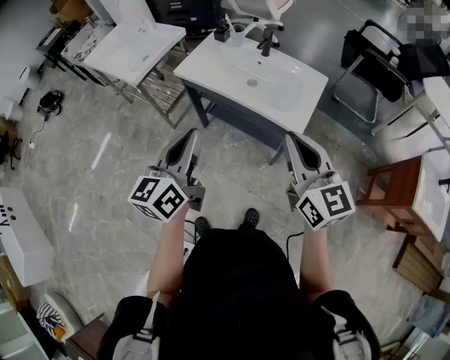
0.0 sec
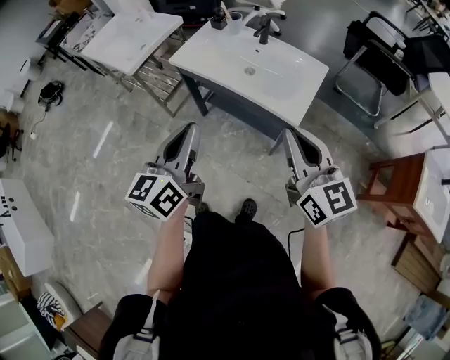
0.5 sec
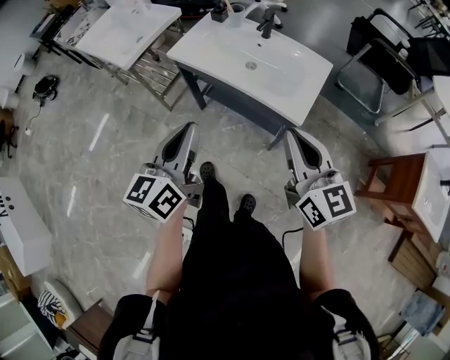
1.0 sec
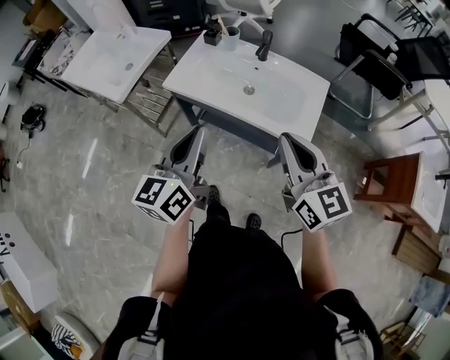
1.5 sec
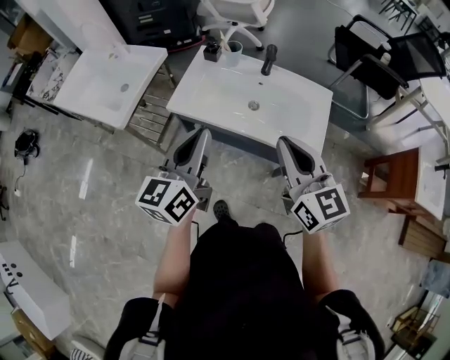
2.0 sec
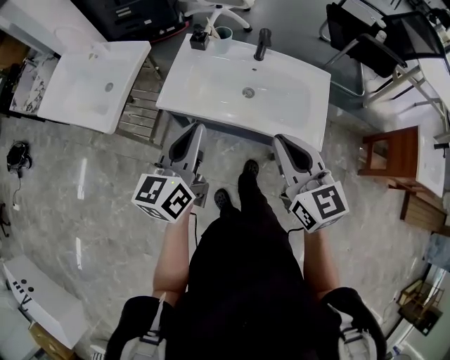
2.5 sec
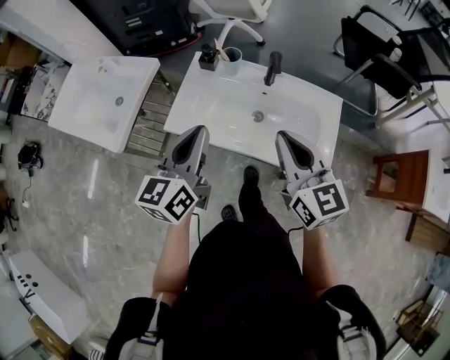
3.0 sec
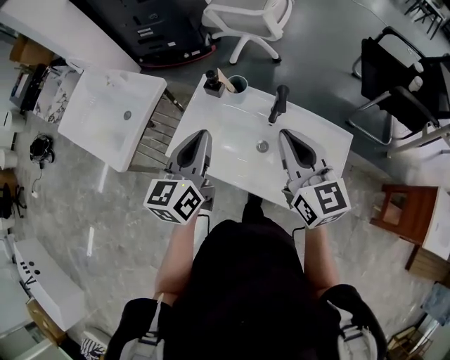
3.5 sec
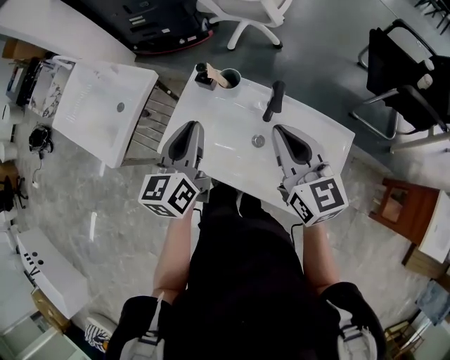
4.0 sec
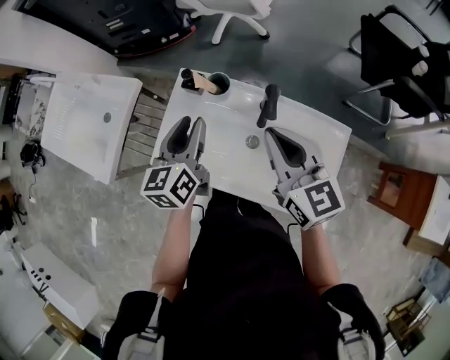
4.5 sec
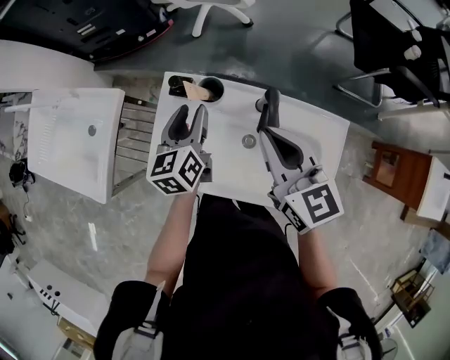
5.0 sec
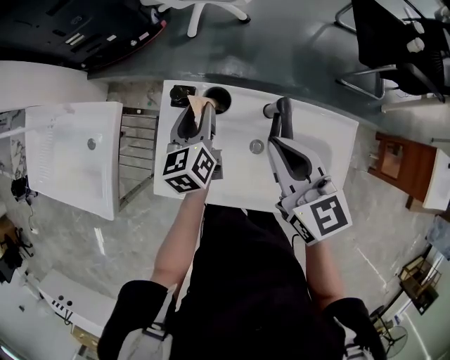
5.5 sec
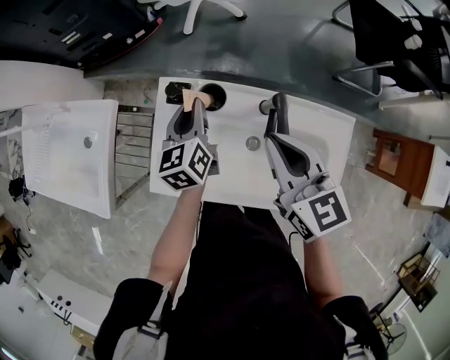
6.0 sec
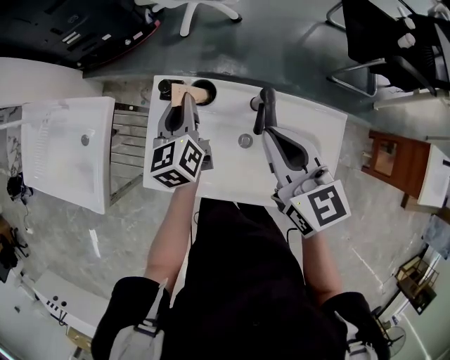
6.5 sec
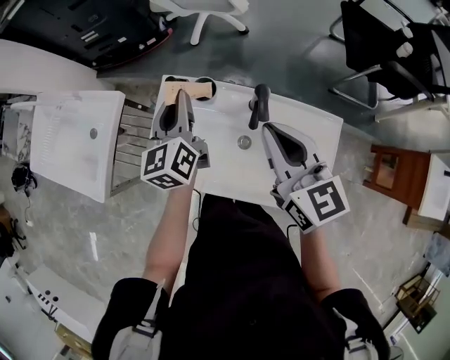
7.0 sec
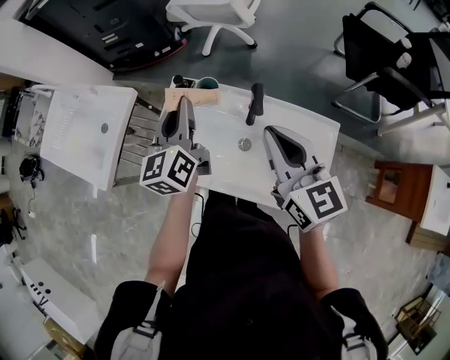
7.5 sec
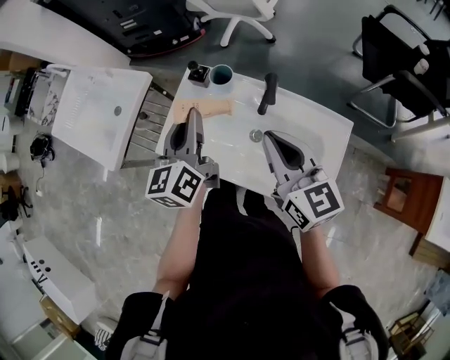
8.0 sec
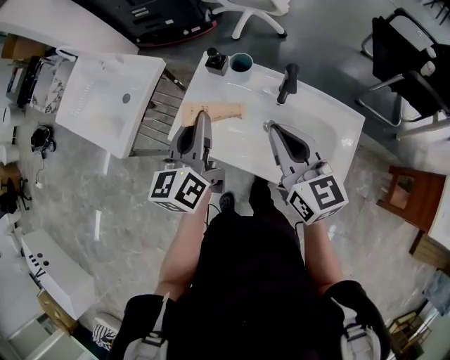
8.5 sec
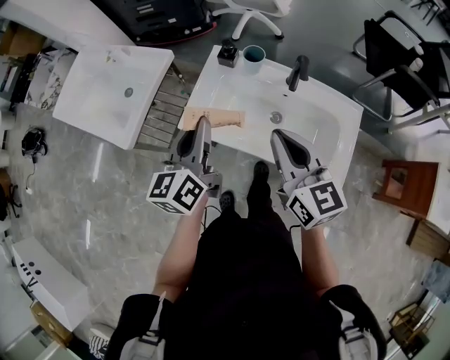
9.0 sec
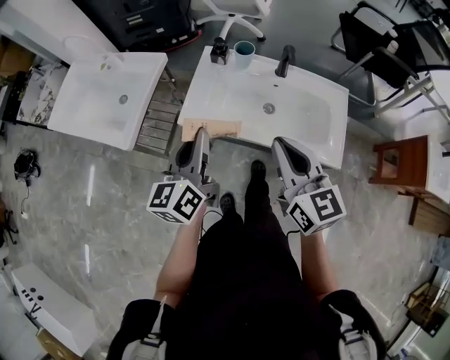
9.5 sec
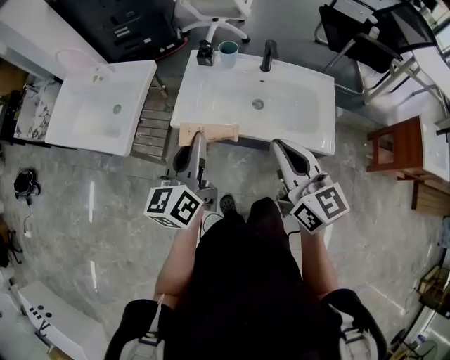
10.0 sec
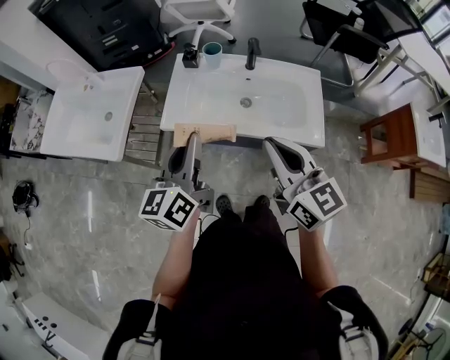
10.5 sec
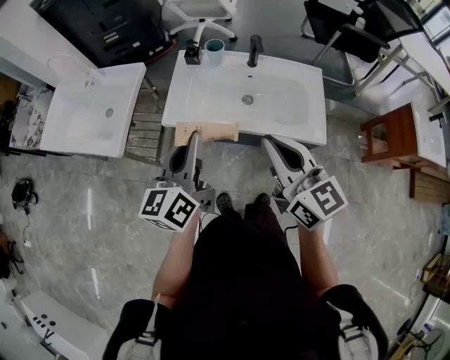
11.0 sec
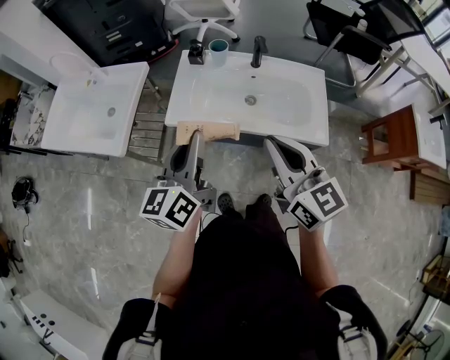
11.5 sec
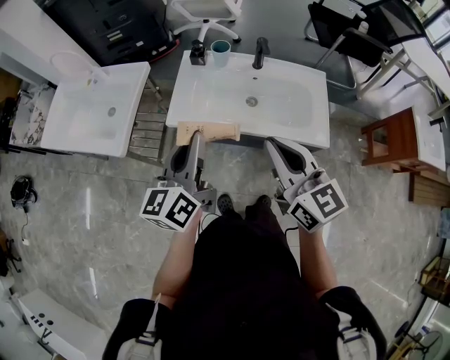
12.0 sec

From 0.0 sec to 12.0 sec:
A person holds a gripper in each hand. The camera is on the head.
From 0.0 sec to 2.0 sec: The left gripper goes approximately 20 cm forward. Meanwhile the right gripper shifts about 20 cm forward and to the left.
From 2.0 sec to 4.0 sec: Both grippers move forward, approximately 30 cm.
From 4.0 sec to 6.0 sec: The right gripper is displaced forward by approximately 10 cm, while the left gripper goes approximately 25 cm forward and downward, and opens and closes again.
From 6.0 sec to 8.0 sec: The left gripper shifts some 20 cm backward and upward. The right gripper heads backward, covering approximately 10 cm.
From 8.0 sec to 10.0 sec: Both grippers move backward and to the left, approximately 25 cm.
From 10.0 sec to 12.0 sec: The grippers stay close to where they were, moving slightly.

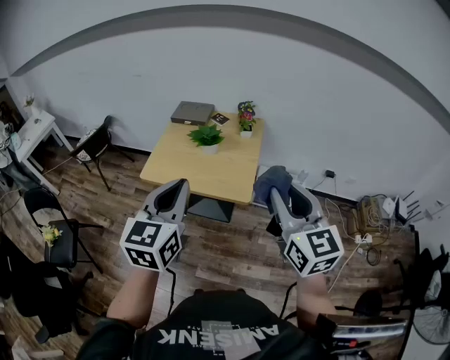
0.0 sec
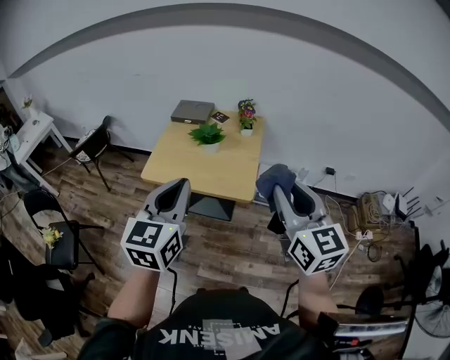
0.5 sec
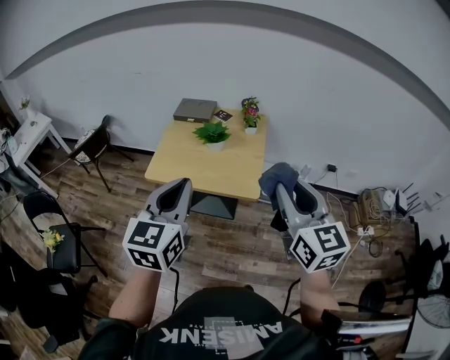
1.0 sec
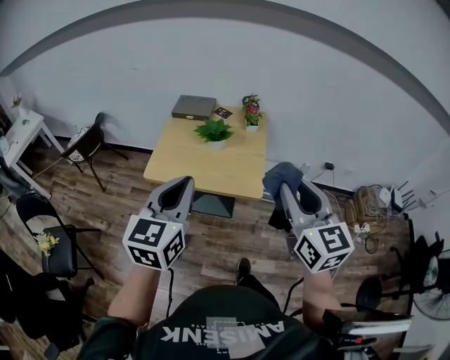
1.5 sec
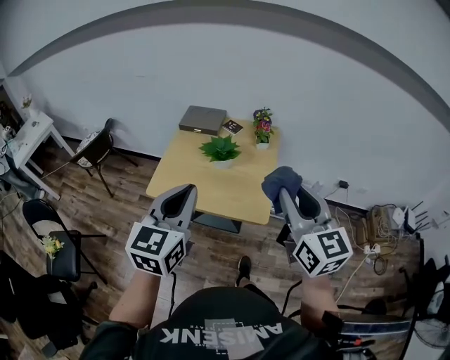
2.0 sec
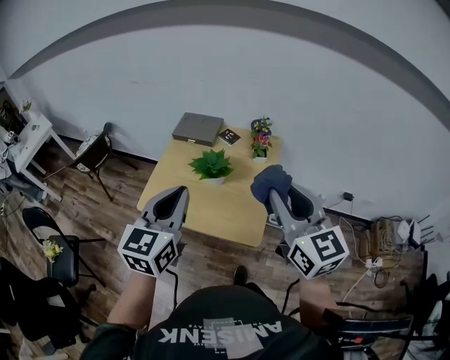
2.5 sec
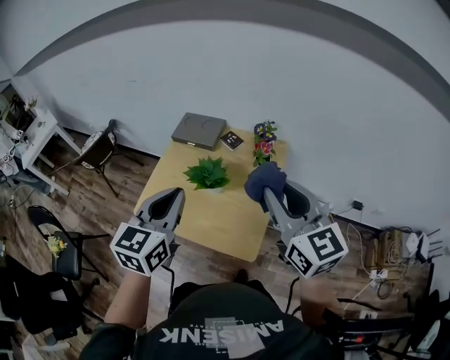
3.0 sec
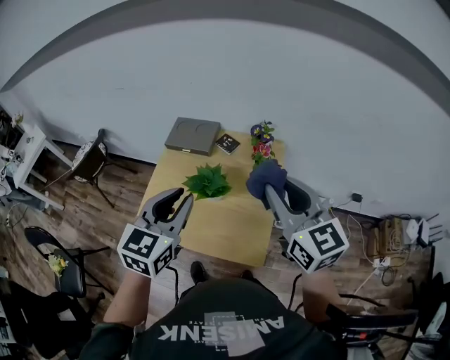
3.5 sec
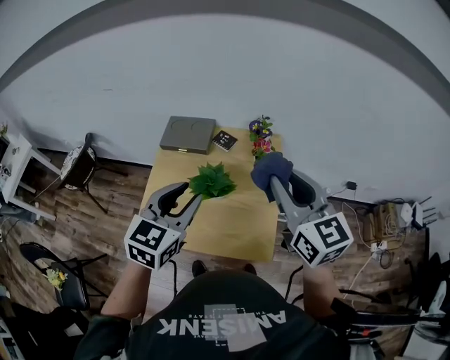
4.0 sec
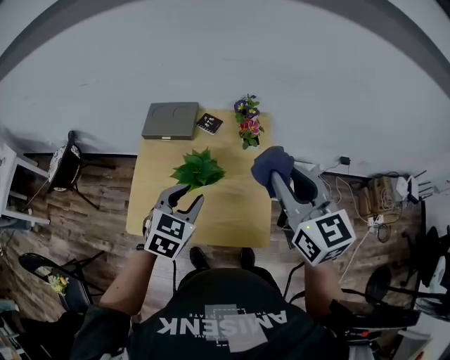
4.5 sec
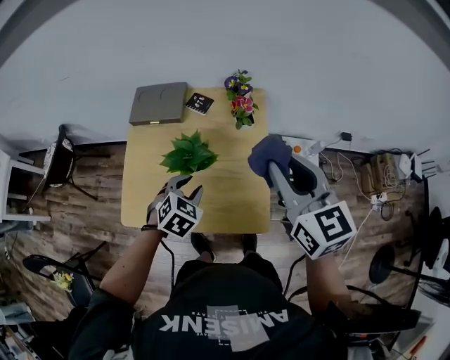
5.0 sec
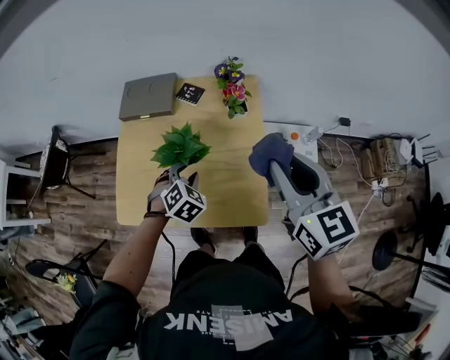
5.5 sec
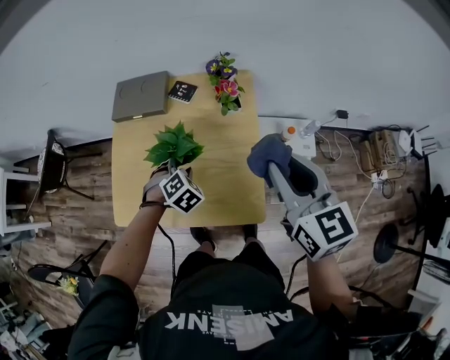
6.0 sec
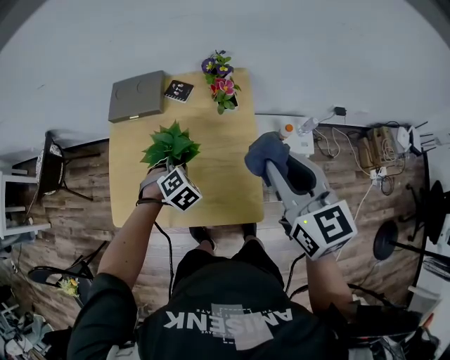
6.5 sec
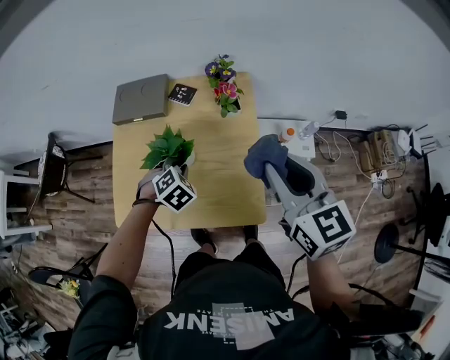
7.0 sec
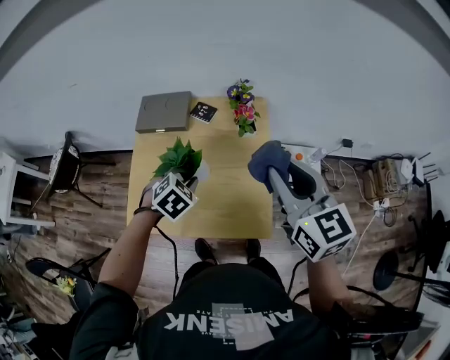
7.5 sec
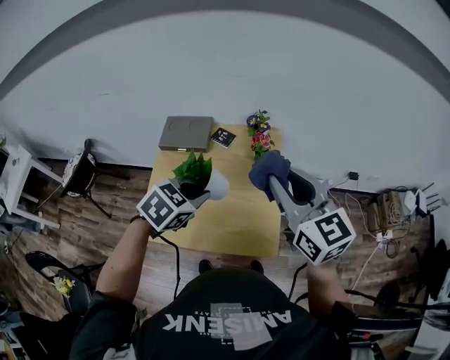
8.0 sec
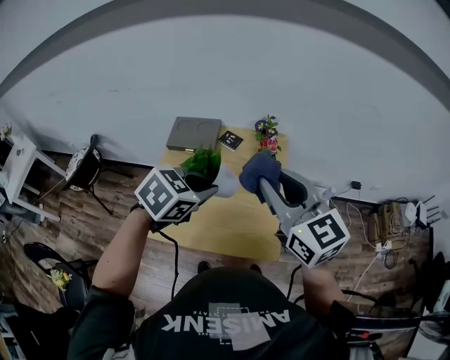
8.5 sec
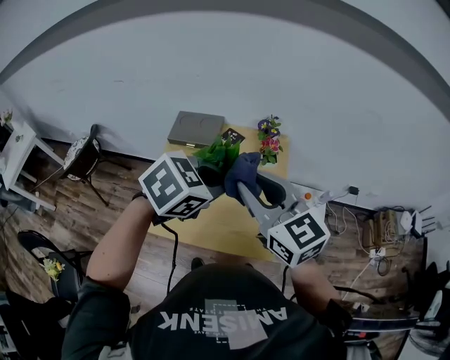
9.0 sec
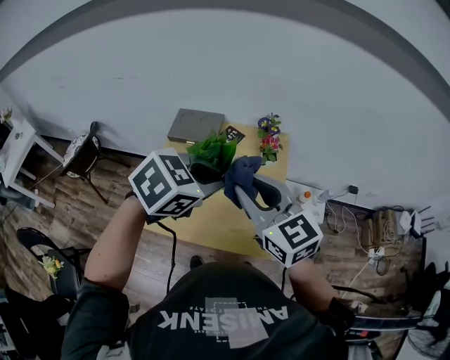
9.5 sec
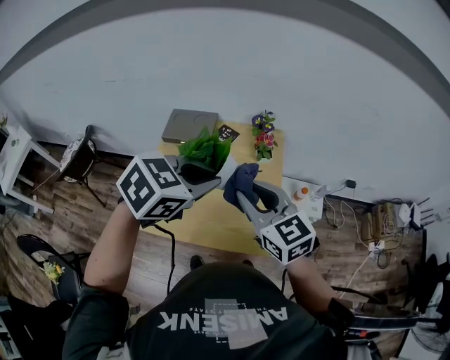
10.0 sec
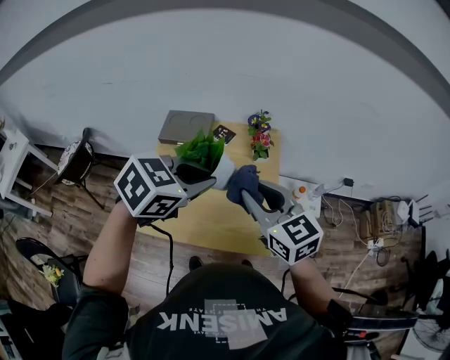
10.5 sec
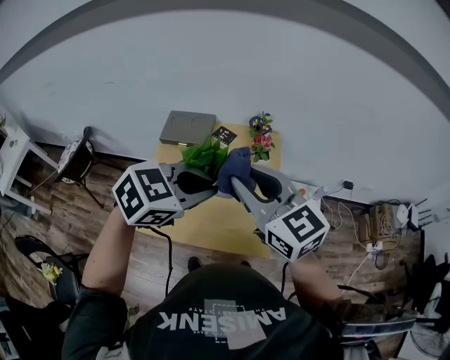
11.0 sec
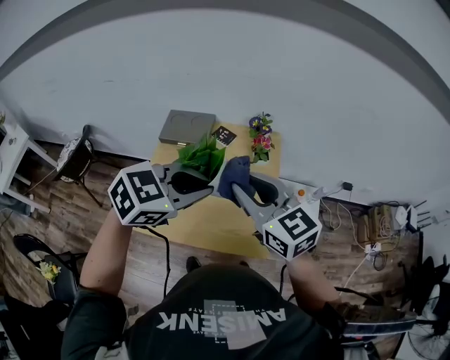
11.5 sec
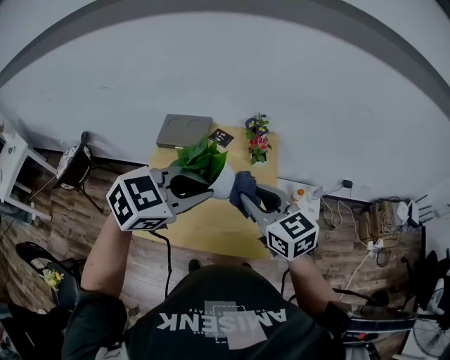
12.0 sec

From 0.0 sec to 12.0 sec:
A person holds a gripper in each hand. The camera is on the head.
From 0.0 sec to 2.0 sec: Both grippers travel together forward, approximately 10 cm.
From 2.0 sec to 4.0 sec: The grippers both shift forward by about 25 cm. The left gripper opens.
From 4.0 sec to 6.0 sec: The right gripper travels downward and to the right by some 10 cm. The left gripper moves downward, approximately 30 cm, and tips its fingers downward by some 40 degrees.
From 6.0 sec to 8.0 sec: The left gripper goes approximately 20 cm upward, turns by approximately 30 degrees, and closes its fingers. Meanwhile the right gripper heads upward and to the left, covering roughly 15 cm.
From 8.0 sec to 10.0 sec: The left gripper moves upward, roughly 10 cm. The right gripper moves to the left and downward, some 10 cm.
From 10.0 sec to 12.0 sec: The right gripper goes upward and returns, approximately 10 cm each way.

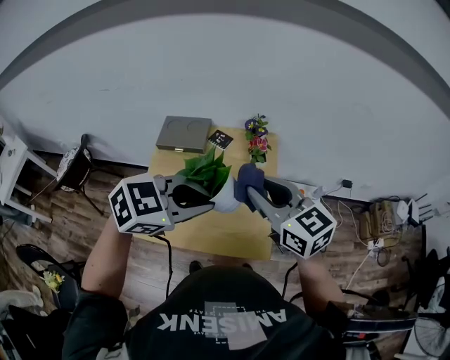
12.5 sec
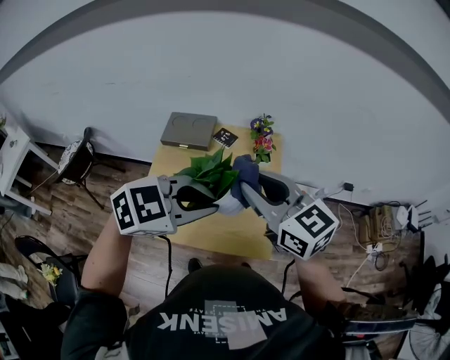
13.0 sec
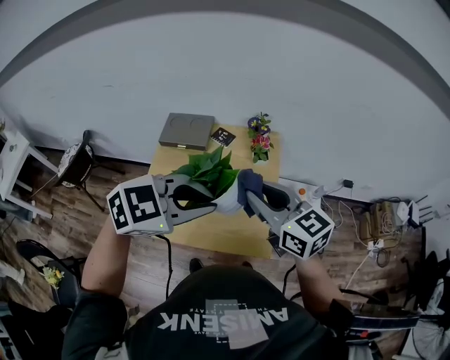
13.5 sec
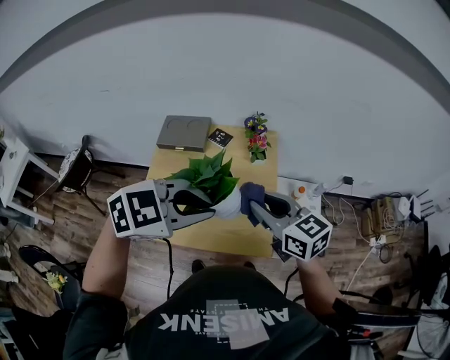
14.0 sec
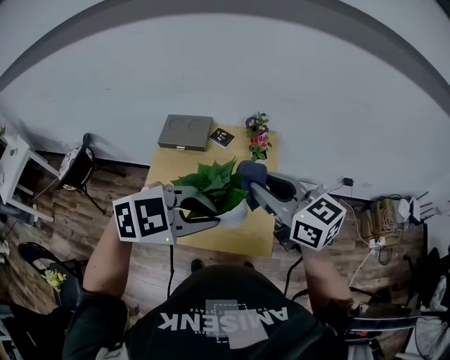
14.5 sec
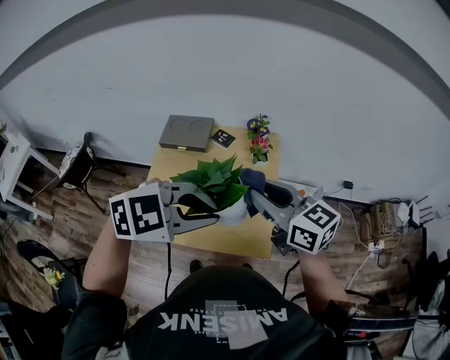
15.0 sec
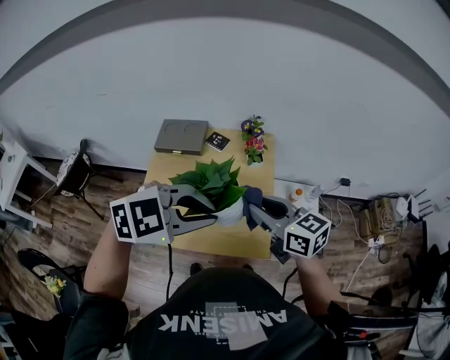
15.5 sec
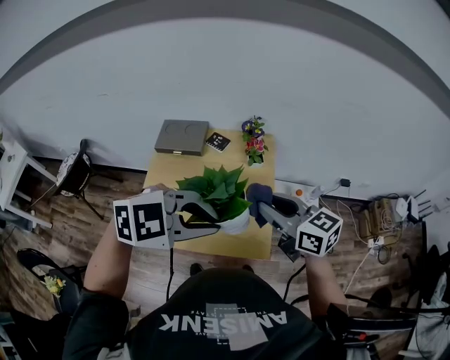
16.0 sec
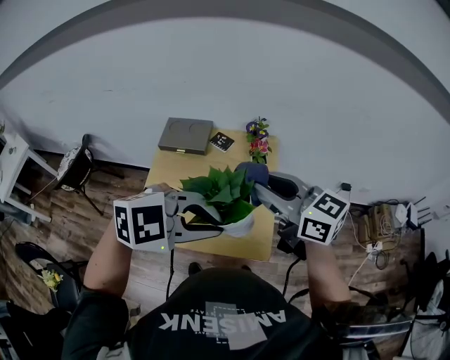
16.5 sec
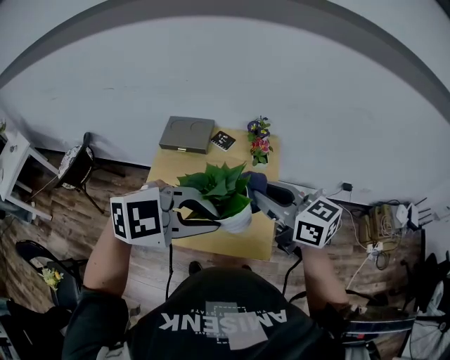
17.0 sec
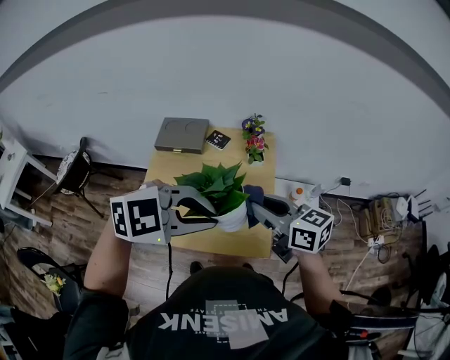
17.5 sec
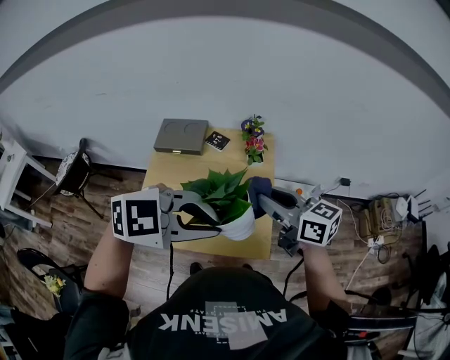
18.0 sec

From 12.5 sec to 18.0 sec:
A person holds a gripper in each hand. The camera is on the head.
From 12.5 sec to 14.5 sec: The right gripper reaches some 5 cm downward, then returns.
From 14.5 sec to 16.0 sec: The right gripper moves downward, roughly 5 cm.
From 16.0 sec to 18.0 sec: The right gripper reaches roughly 10 cm upward, then returns.
